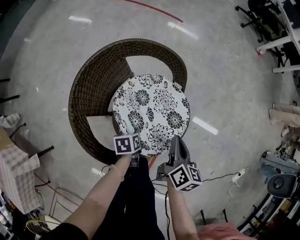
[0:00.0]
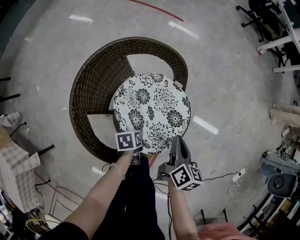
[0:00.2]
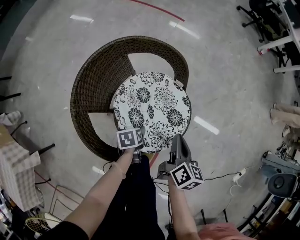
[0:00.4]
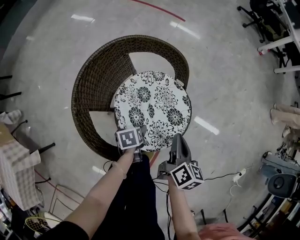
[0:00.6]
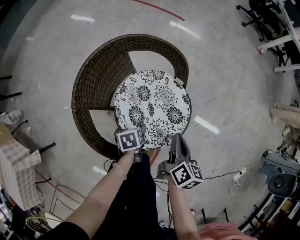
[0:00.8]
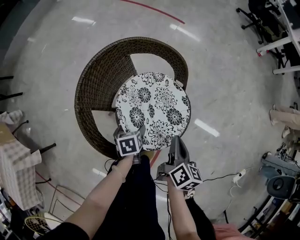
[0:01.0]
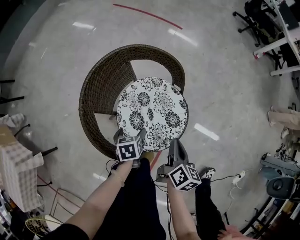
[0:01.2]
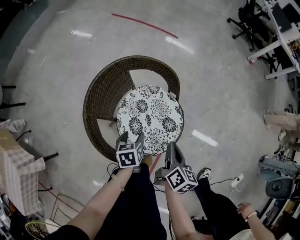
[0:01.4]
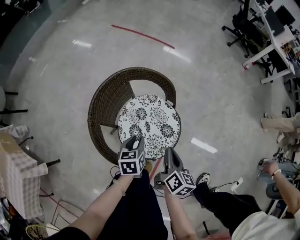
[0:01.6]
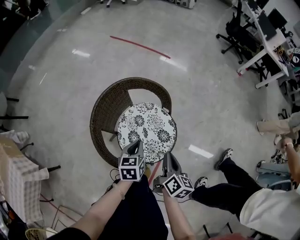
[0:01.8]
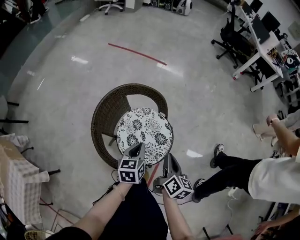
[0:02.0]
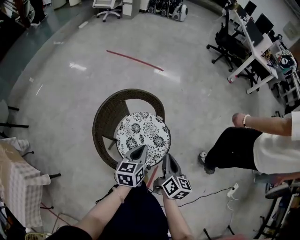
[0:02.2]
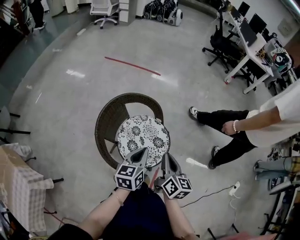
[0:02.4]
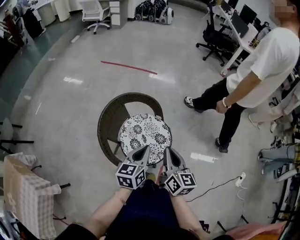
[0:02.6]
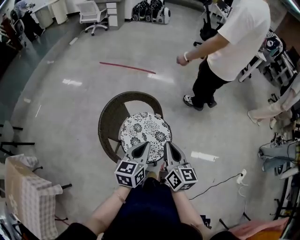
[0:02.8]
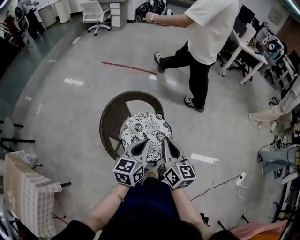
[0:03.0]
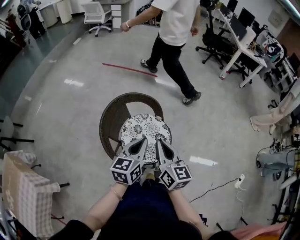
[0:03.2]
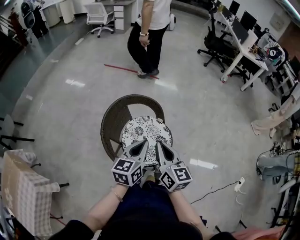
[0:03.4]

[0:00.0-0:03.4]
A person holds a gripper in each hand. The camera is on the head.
0:00.0 to 0:01.6: The right gripper travels upward by some 10 cm; the left gripper shifts some 20 cm upward, swivels some 30 degrees, and opens and closes again.
0:01.6 to 0:03.4: Both grippers move upward, roughly 25 cm. The right gripper swivels roughly 30 degrees. The left gripper rotates approximately 40 degrees.

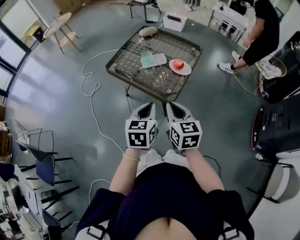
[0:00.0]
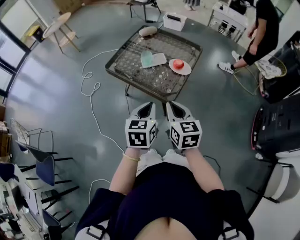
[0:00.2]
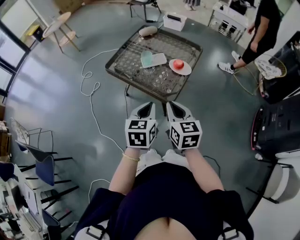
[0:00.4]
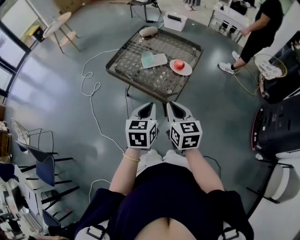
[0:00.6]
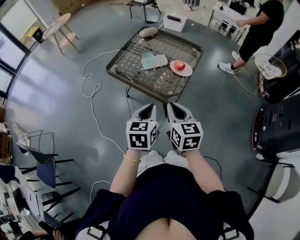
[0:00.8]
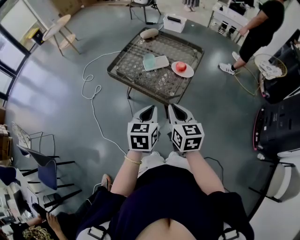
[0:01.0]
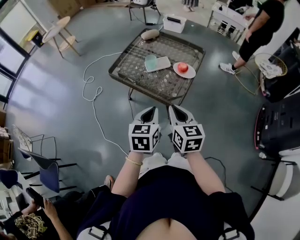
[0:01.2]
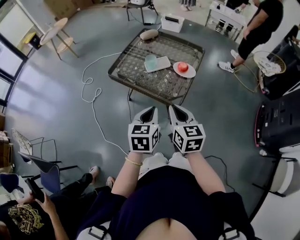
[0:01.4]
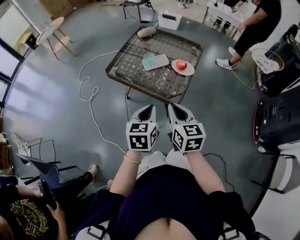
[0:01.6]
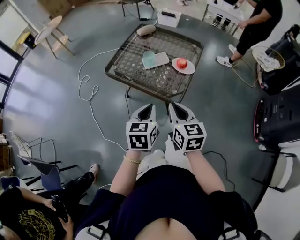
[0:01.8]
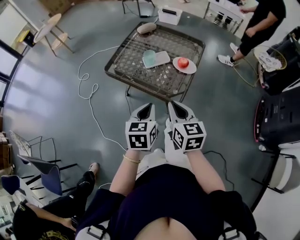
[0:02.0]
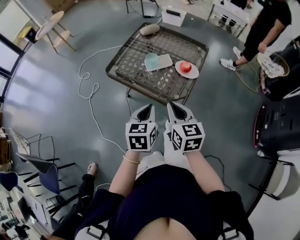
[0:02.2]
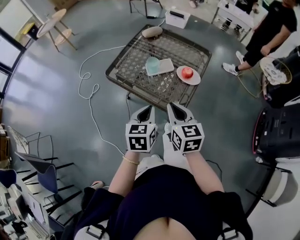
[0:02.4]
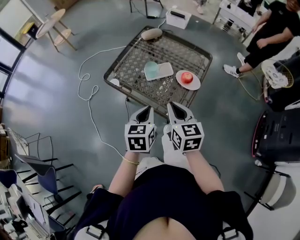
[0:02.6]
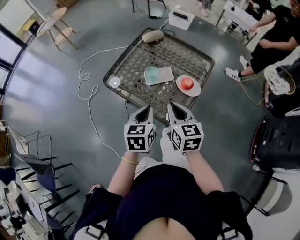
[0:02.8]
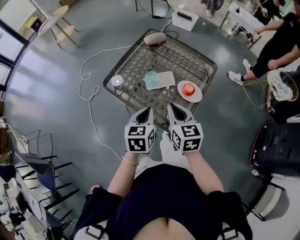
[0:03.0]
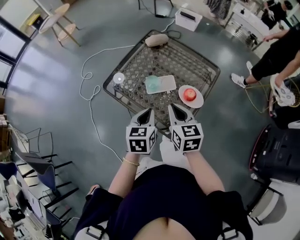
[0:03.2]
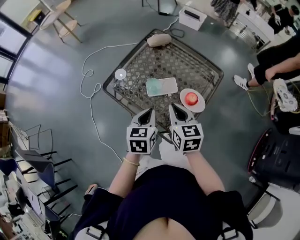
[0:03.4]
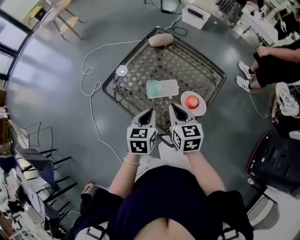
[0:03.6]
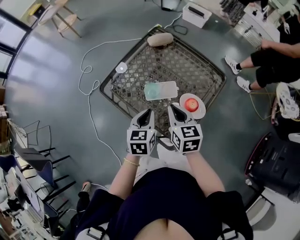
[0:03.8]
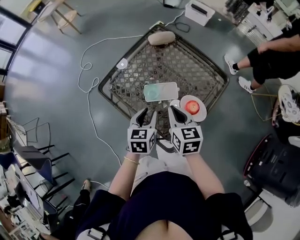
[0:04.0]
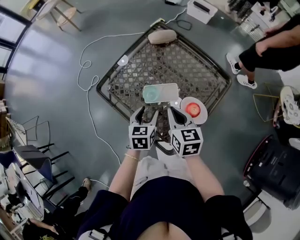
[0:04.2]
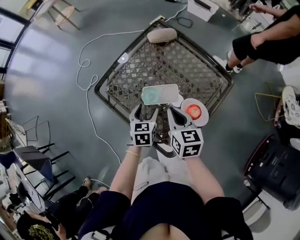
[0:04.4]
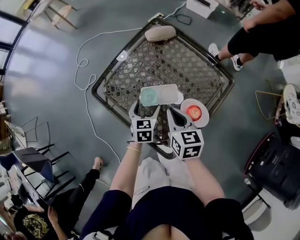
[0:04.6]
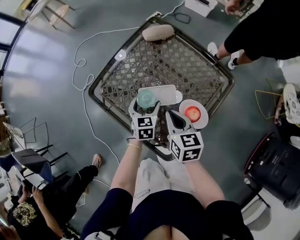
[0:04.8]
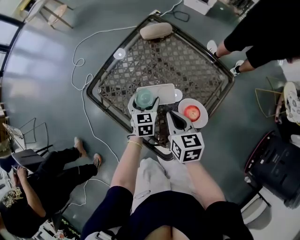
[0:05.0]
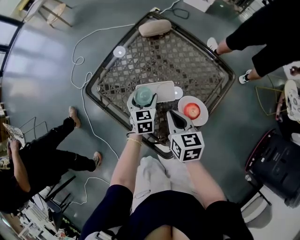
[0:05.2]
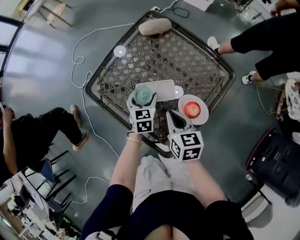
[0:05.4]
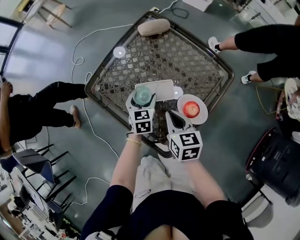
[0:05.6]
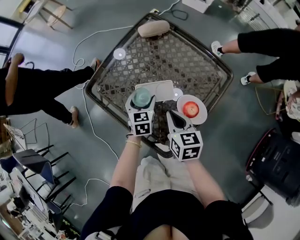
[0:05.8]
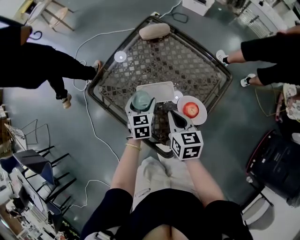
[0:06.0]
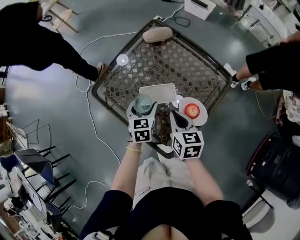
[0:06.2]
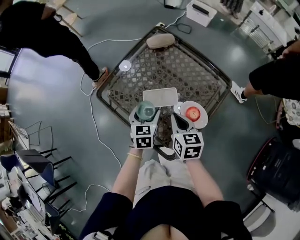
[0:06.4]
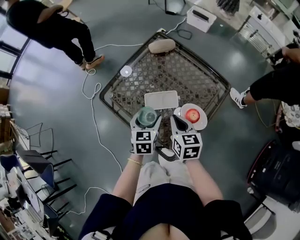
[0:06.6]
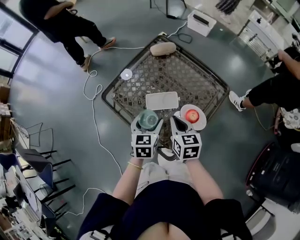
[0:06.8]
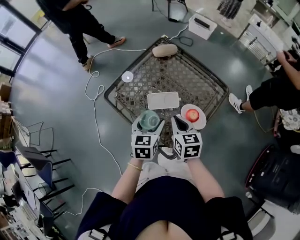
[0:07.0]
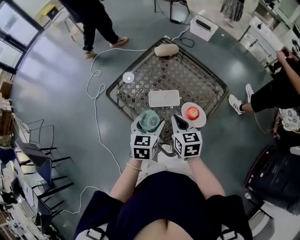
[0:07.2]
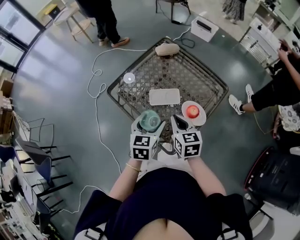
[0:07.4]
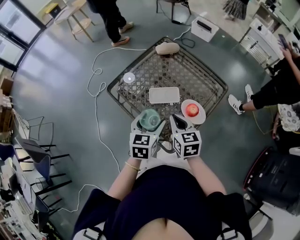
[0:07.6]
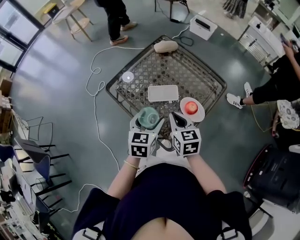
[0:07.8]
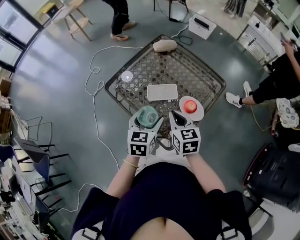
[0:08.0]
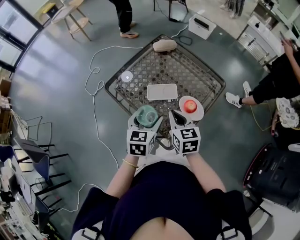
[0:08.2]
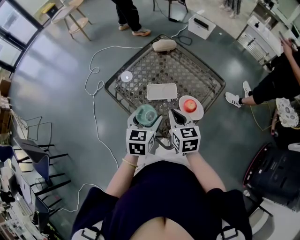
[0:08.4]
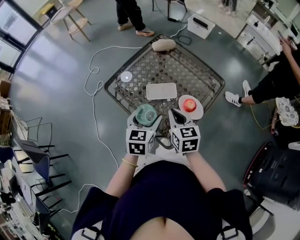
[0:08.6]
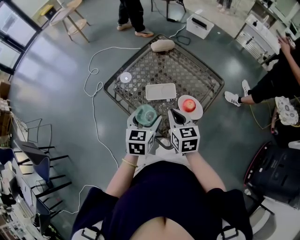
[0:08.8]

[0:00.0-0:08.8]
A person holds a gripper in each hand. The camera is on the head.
0:00.0 to 0:01.4: The grippers move only a little.
0:01.4 to 0:03.0: The two grippers go approximately 20 cm forward.
0:03.0 to 0:04.4: The left gripper is displaced downward and forward by approximately 25 cm, and opens up. Meanwhile the right gripper moves forward and downward, roughly 20 cm.
0:04.4 to 0:05.8: The right gripper shifts by some 5 cm. The left gripper ends up roughly 5 cm from where it was.
0:05.8 to 0:07.4: The right gripper is displaced upward and backward by about 10 cm; the left gripper heads upward and backward, covering about 20 cm.
0:07.4 to 0:08.8: The grippers make only small movements.

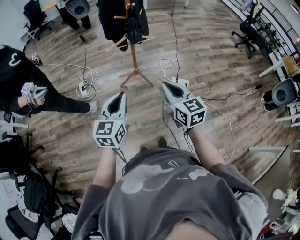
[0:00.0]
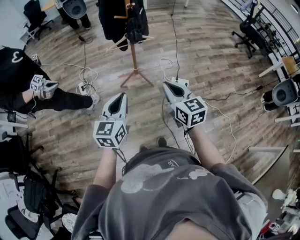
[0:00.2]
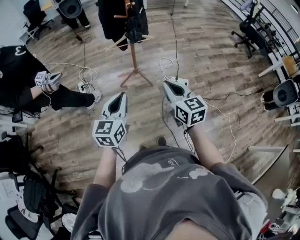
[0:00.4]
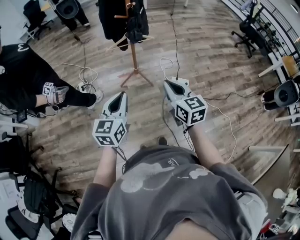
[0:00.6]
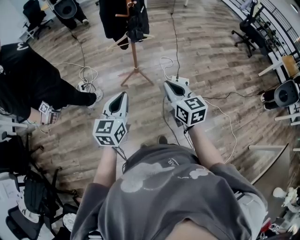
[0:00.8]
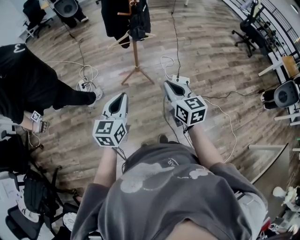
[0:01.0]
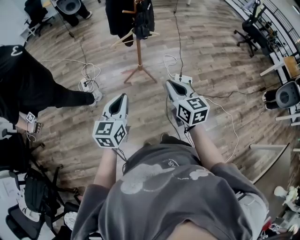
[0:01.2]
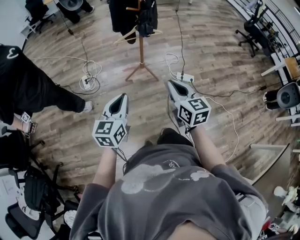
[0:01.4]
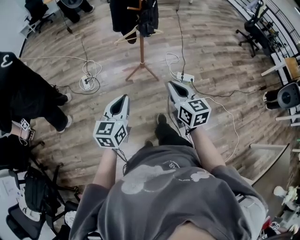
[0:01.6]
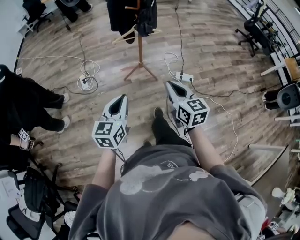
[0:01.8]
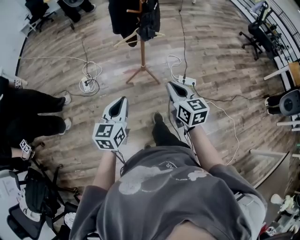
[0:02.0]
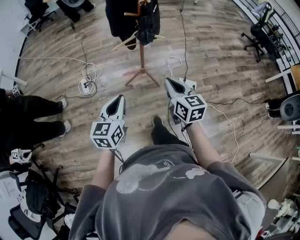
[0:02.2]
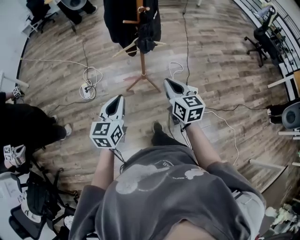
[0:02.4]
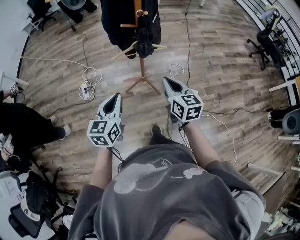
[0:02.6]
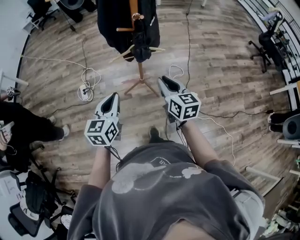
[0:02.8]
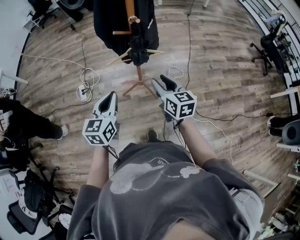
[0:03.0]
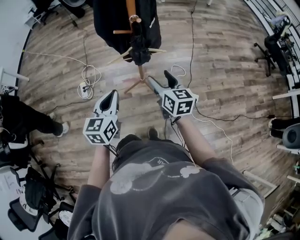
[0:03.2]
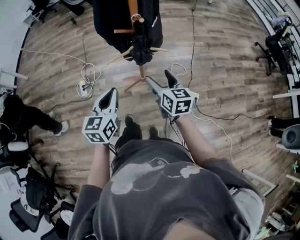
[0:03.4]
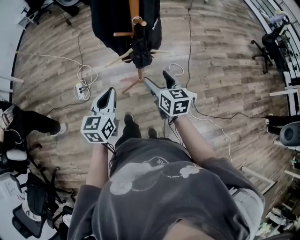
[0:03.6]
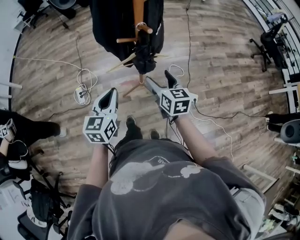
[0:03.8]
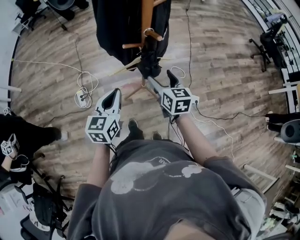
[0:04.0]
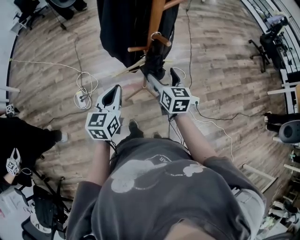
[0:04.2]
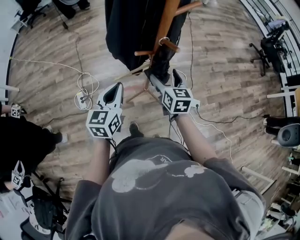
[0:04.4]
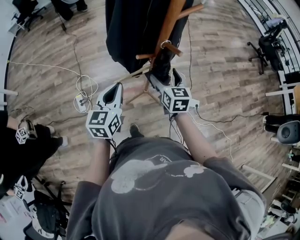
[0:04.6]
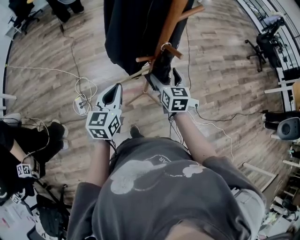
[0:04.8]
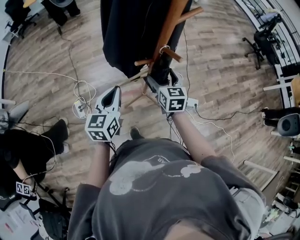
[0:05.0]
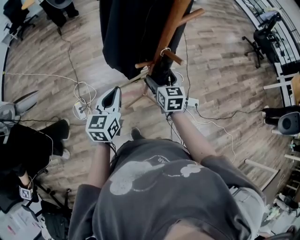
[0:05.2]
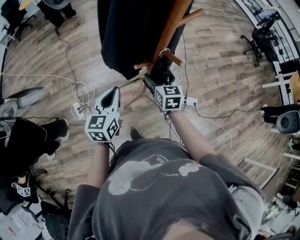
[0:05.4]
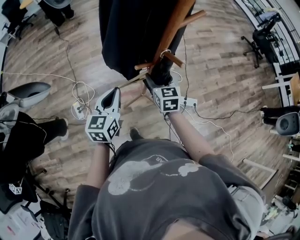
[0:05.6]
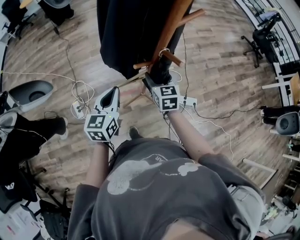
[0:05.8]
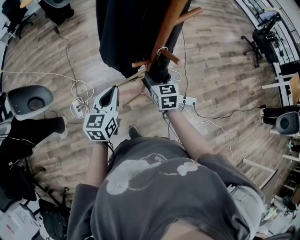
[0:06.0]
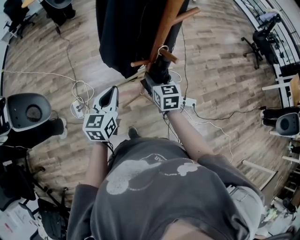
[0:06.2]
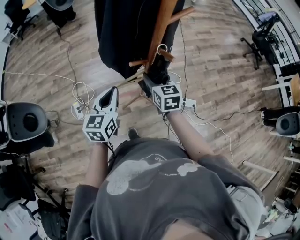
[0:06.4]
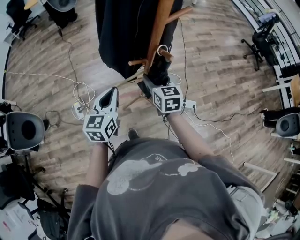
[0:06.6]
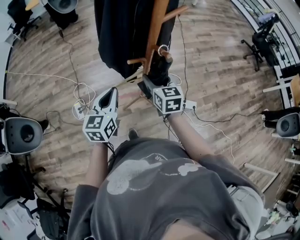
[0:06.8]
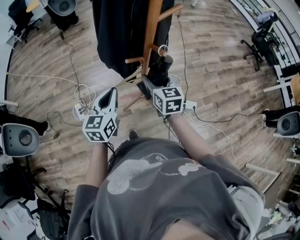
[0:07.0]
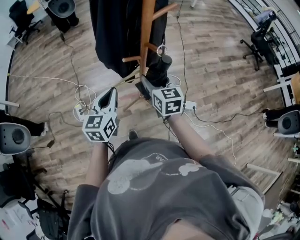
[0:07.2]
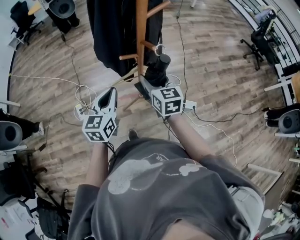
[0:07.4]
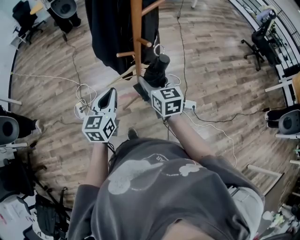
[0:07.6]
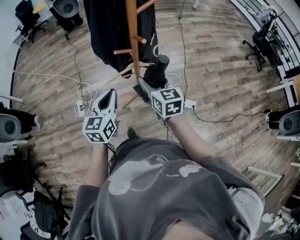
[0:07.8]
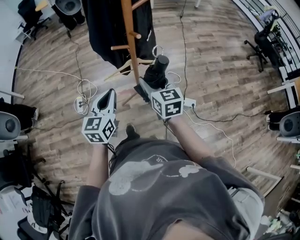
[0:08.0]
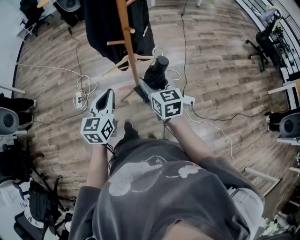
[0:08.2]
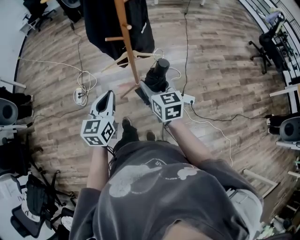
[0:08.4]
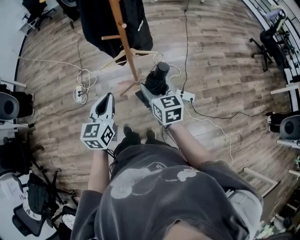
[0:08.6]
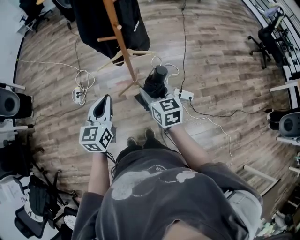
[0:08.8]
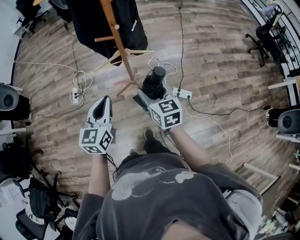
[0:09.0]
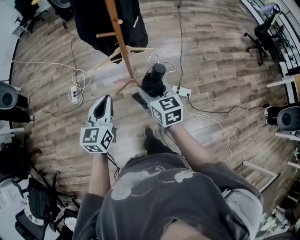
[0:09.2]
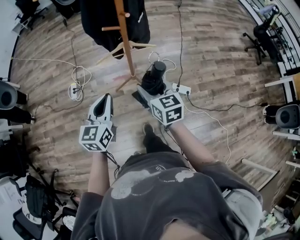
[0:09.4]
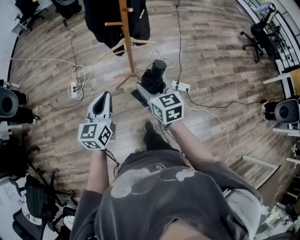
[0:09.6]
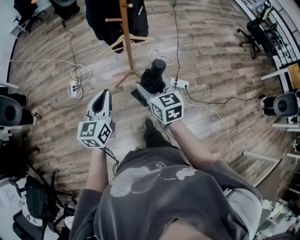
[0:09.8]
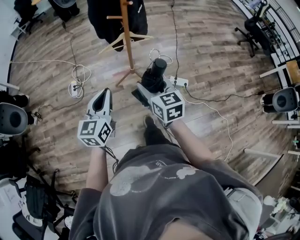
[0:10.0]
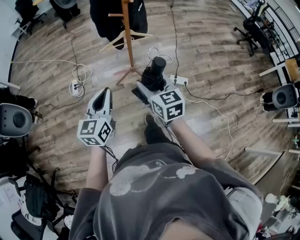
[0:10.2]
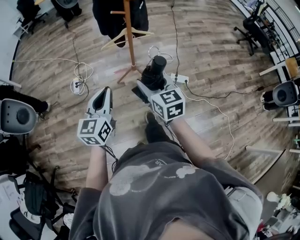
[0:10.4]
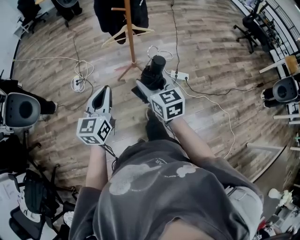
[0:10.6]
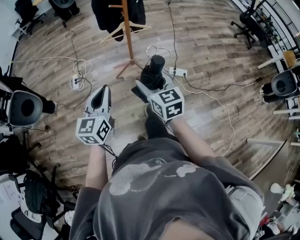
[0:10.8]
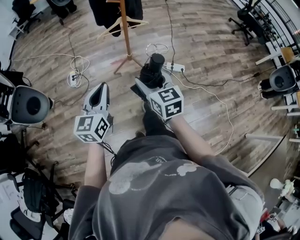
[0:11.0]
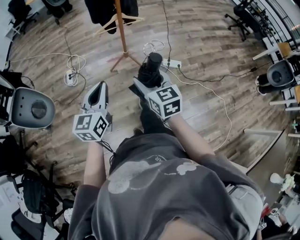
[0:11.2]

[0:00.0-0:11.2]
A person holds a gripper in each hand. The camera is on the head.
0:00.0 to 0:01.6: Both grippers move to the left, approximately 5 cm.
0:01.6 to 0:03.2: Both grippers travel together forward, about 35 cm. The right gripper opens its fingers.
0:03.2 to 0:04.8: Both grippers move forward and to the left, roughly 25 cm.
0:04.8 to 0:06.4: The right gripper closes.
0:06.4 to 0:08.0: The left gripper shifts about 15 cm backward and to the right; the right gripper travels backward, to the right and upward by roughly 15 cm.
0:08.0 to 0:09.6: Both grippers move backward, approximately 15 cm.
0:09.6 to 0:11.2: The two grippers go some 25 cm backward.
